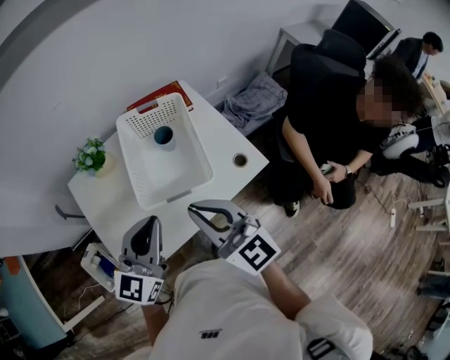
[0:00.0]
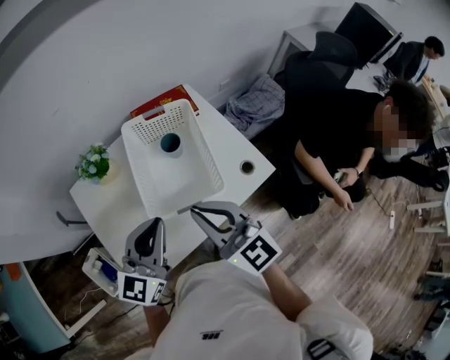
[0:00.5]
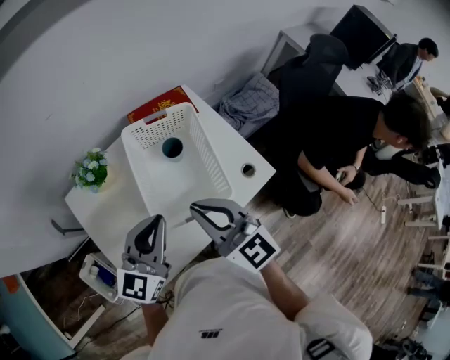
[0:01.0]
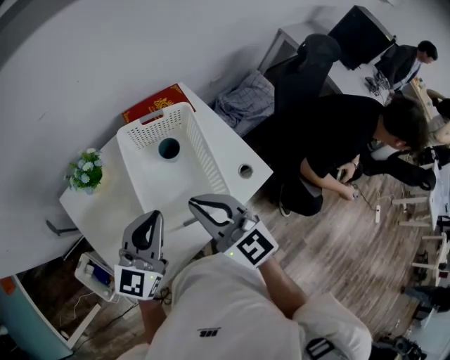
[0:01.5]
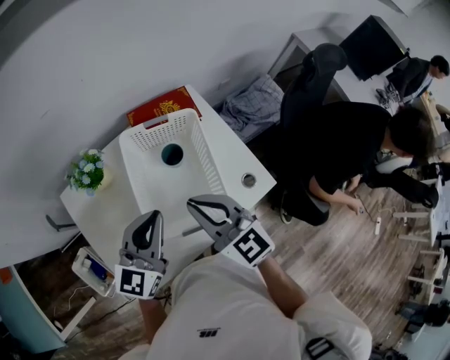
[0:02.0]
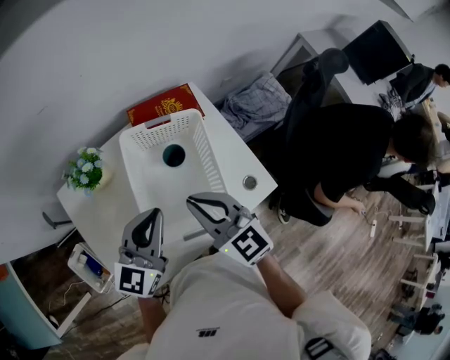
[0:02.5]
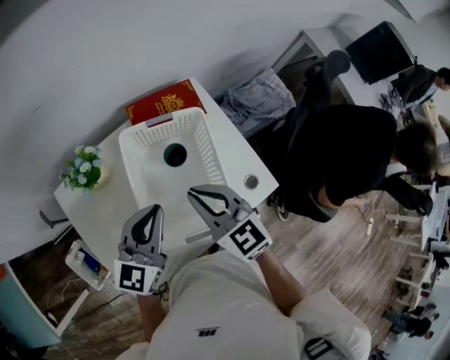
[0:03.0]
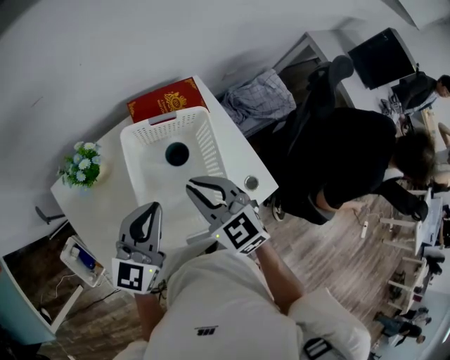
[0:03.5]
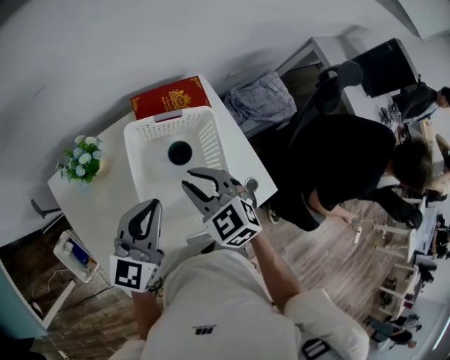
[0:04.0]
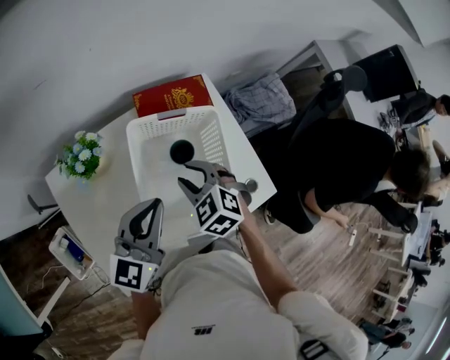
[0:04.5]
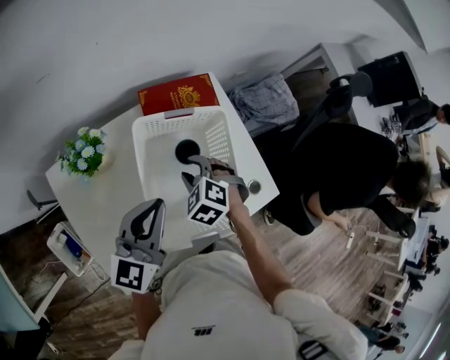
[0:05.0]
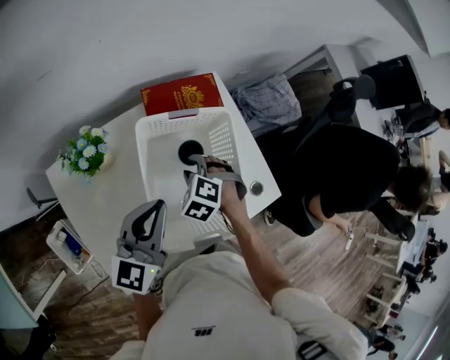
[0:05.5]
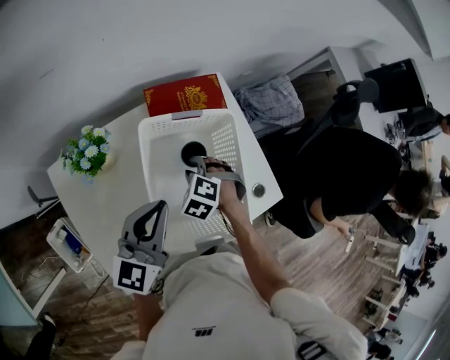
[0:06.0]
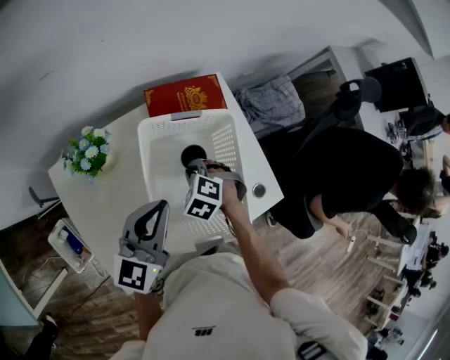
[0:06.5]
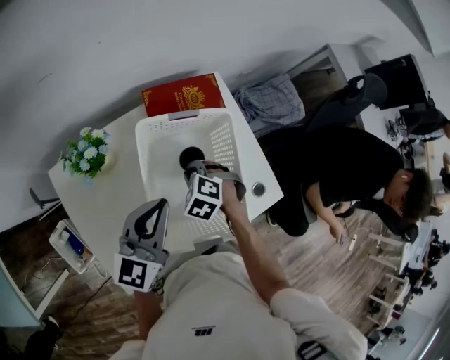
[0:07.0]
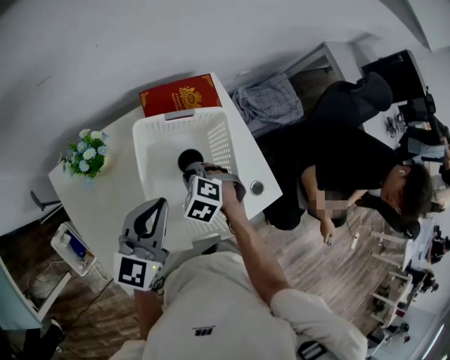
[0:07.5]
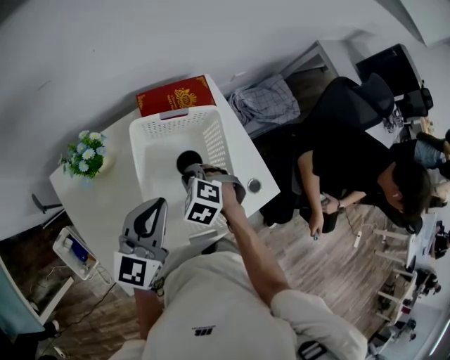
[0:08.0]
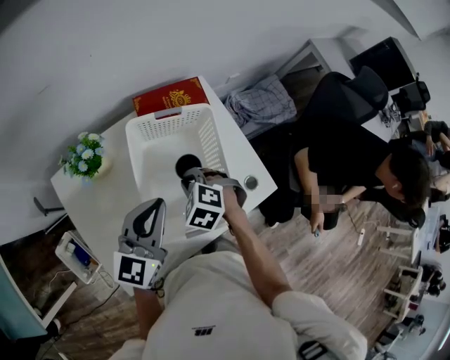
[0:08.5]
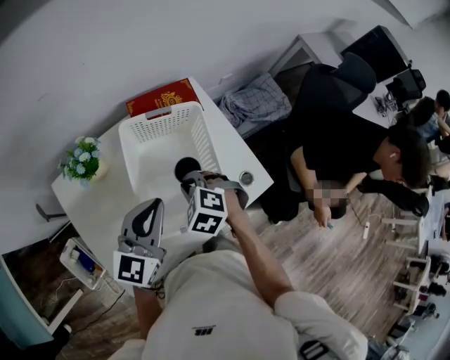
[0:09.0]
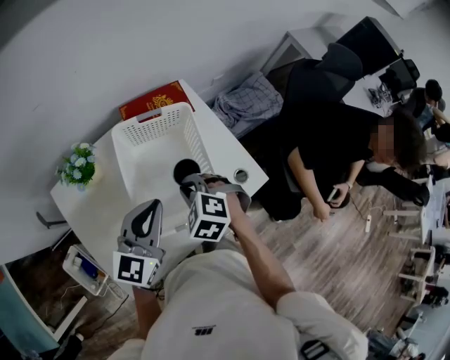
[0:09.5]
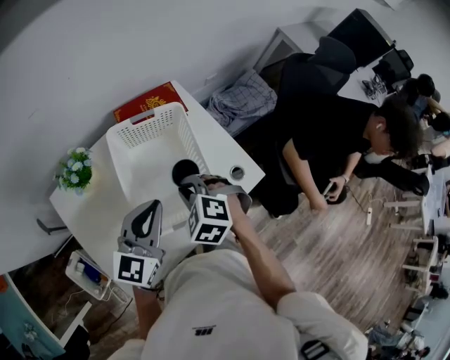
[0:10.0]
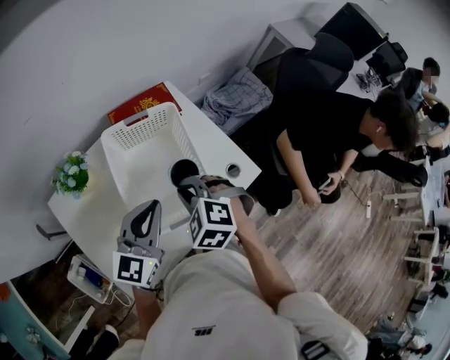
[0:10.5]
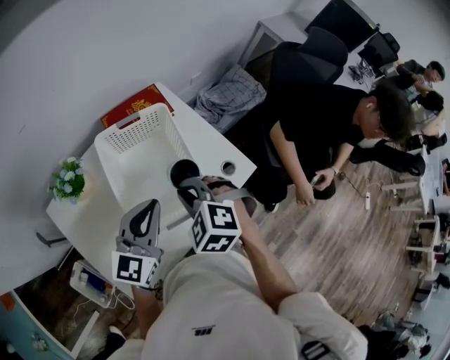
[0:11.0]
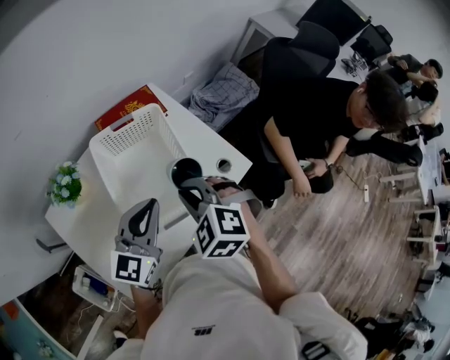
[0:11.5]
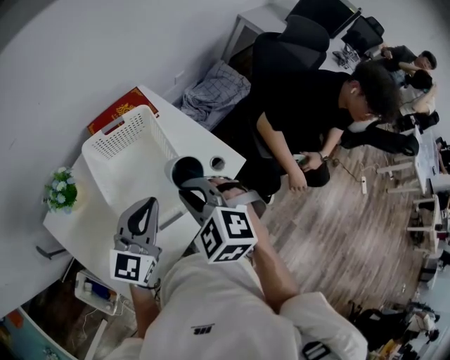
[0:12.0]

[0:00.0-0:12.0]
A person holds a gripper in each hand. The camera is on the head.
0:00.0 to 0:02.0: Both grippers travel together forward, some 15 cm.
0:02.0 to 0:04.0: The left gripper moves forward, about 5 cm; the right gripper is displaced forward and downward by roughly 10 cm, and turns by some 20 degrees.
0:04.0 to 0:06.0: The right gripper is displaced downward by approximately 15 cm, and tilts its fingers approximately 30 degrees downward.
0:06.0 to 0:08.0: The right gripper shifts by roughly 5 cm, and closes.
0:08.0 to 0:10.0: The right gripper moves upward and backward, some 10 cm. Meanwhile the left gripper heads backward, covering roughly 5 cm.
0:10.0 to 0:12.0: The right gripper goes some 10 cm upward.

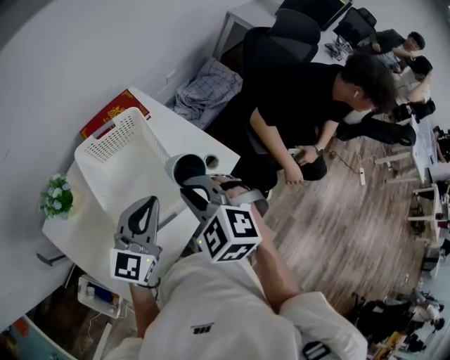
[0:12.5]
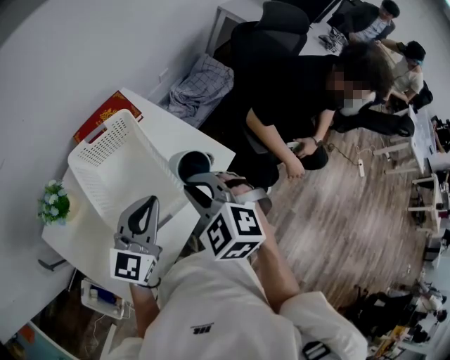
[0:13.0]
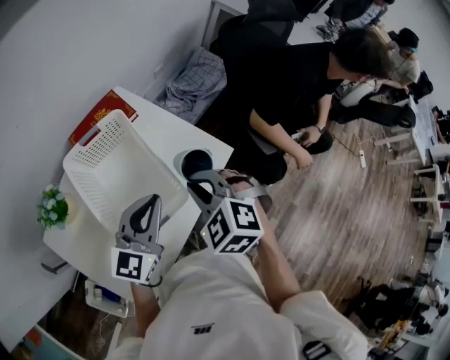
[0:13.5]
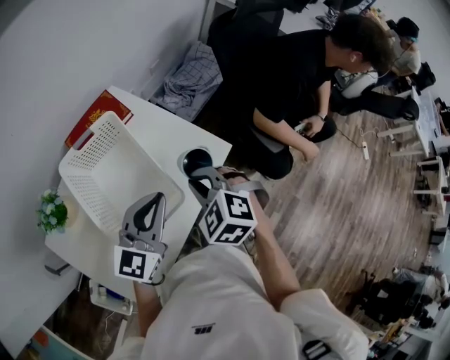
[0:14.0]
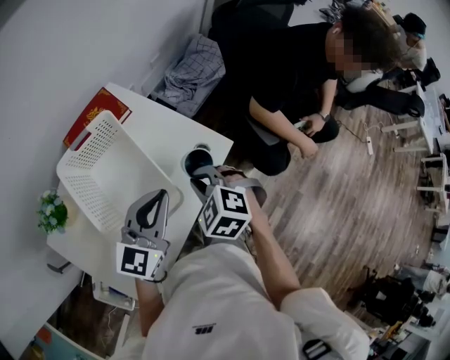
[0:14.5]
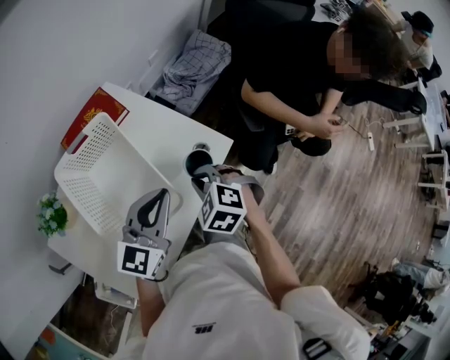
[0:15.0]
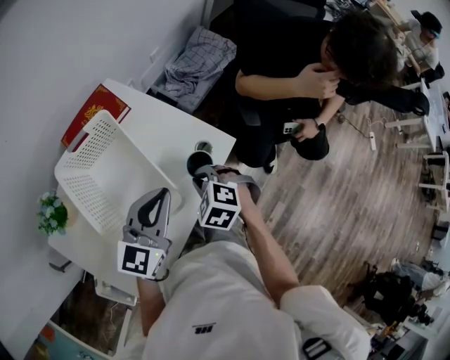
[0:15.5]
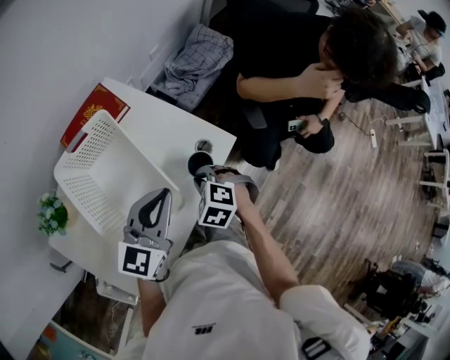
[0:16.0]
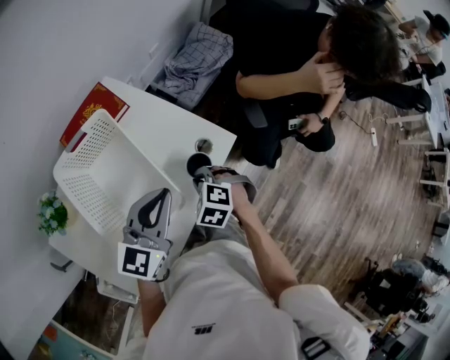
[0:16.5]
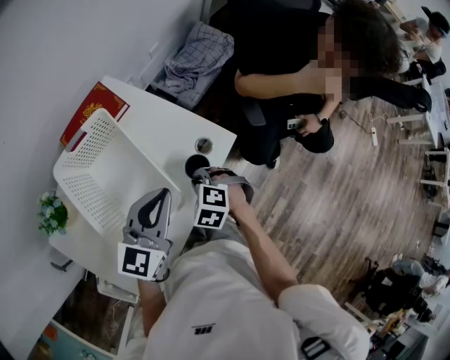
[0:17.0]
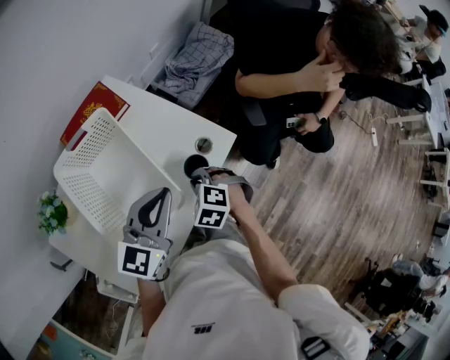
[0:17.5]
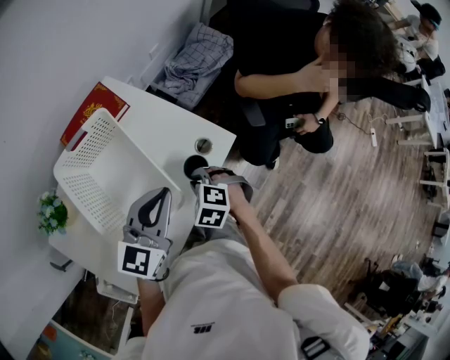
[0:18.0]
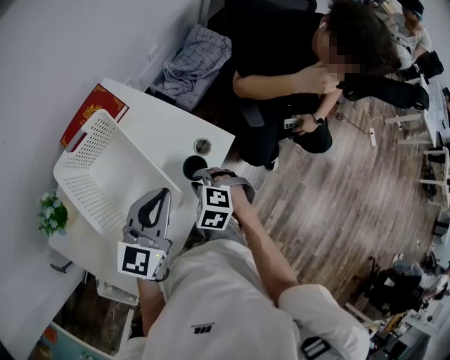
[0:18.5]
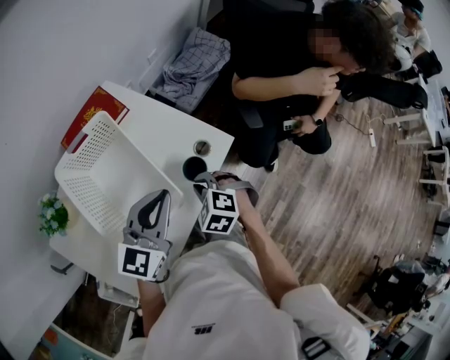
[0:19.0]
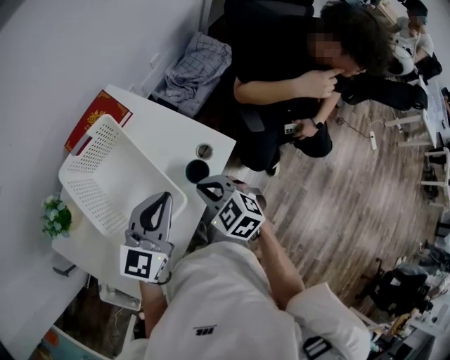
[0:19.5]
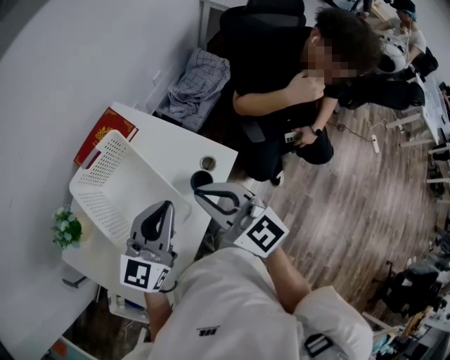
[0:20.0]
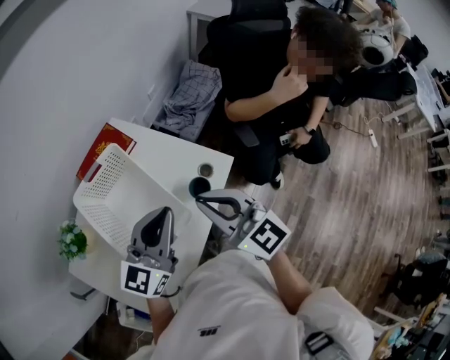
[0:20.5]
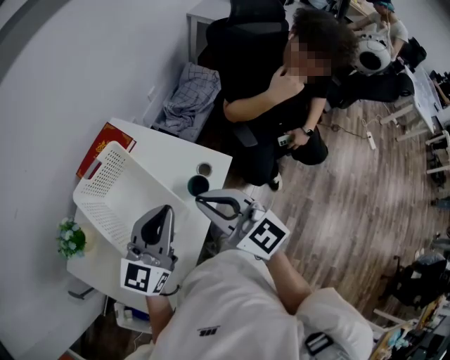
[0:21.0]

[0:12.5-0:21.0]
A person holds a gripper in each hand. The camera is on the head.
0:12.5 to 0:14.5: The left gripper moves to the right, approximately 10 cm; the right gripper shifts approximately 15 cm downward and to the right.
0:14.5 to 0:16.5: The right gripper goes approximately 10 cm downward.
0:16.5 to 0:19.0: There are only small adjustments of the grippers.
0:19.0 to 0:21.0: The right gripper goes roughly 25 cm upward, and points its fingers some 60 degrees further upward, while the left gripper shifts about 10 cm upward.

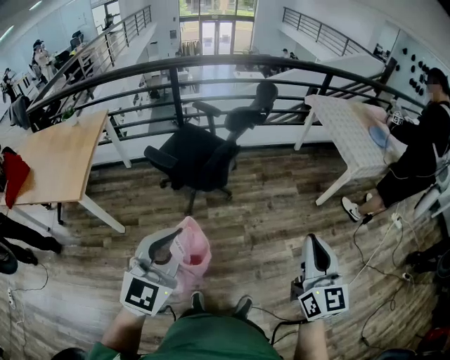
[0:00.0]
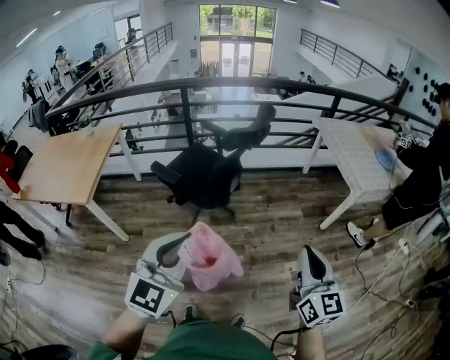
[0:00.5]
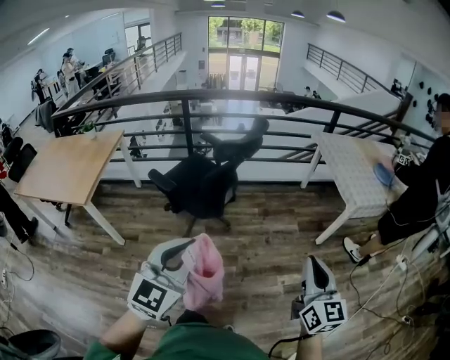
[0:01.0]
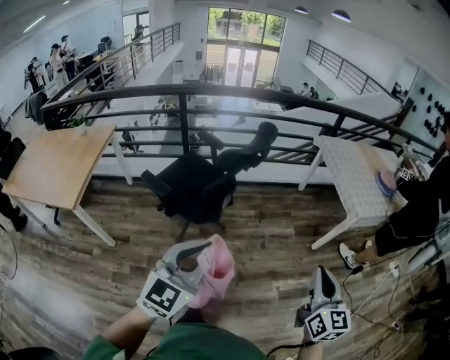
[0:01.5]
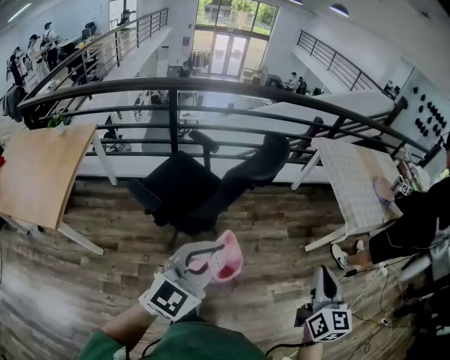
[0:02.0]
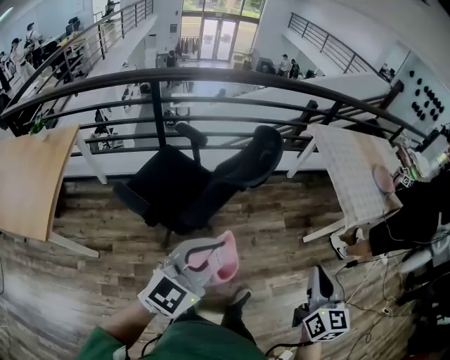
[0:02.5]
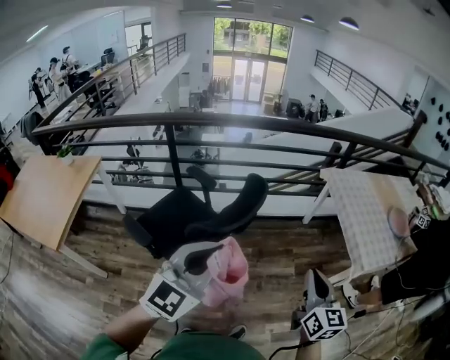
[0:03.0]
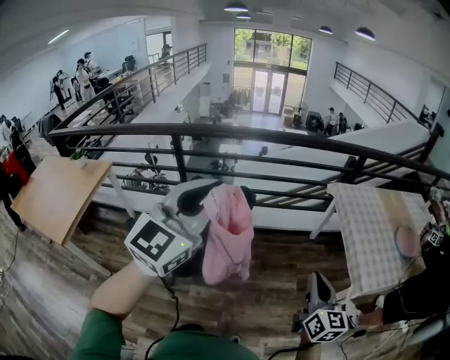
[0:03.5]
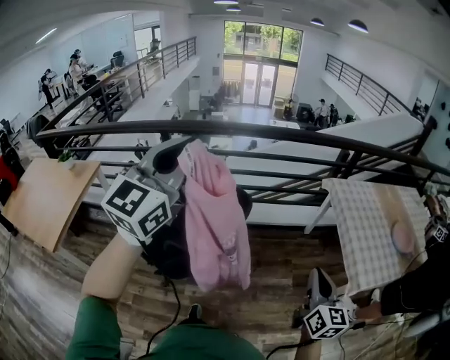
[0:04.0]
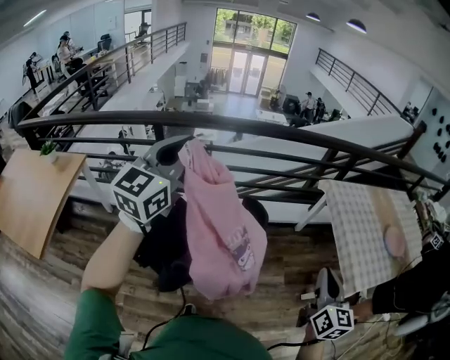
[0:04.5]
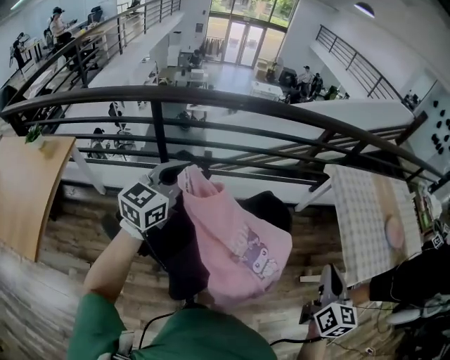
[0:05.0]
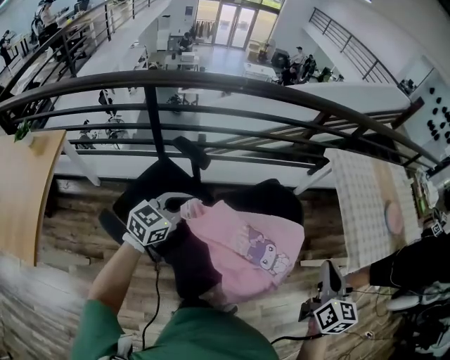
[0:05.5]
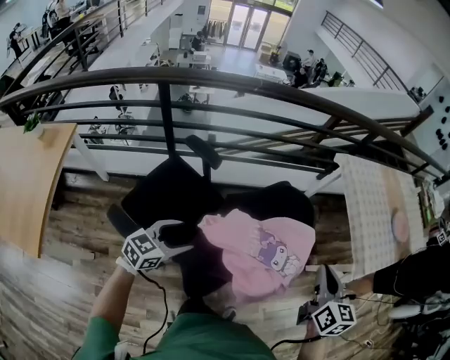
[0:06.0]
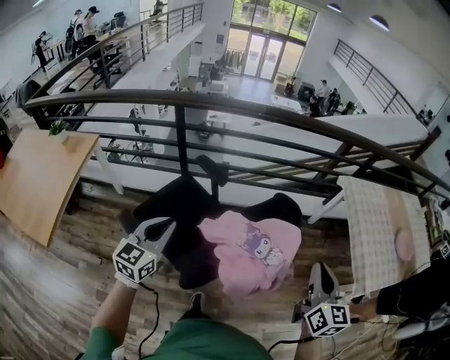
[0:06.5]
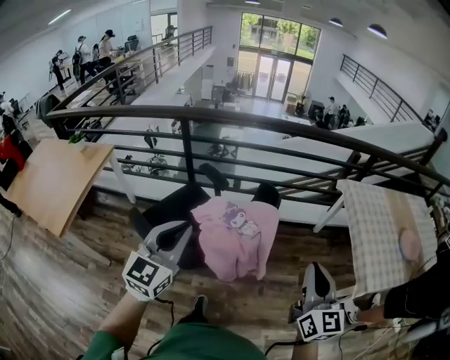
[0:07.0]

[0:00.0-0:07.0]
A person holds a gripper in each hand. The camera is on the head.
0:00.0 to 0:02.0: Both grippers move forward, roughly 25 cm.
0:02.0 to 0:03.5: The left gripper goes roughly 35 cm forward and upward, while the right gripper is displaced forward and to the right by approximately 30 cm.
0:03.5 to 0:05.0: The right gripper travels to the left and forward by roughly 15 cm. The left gripper heads to the left, forward and downward, covering roughly 40 cm, and swivels some 20 degrees.
0:05.0 to 0:07.0: The left gripper moves approximately 20 cm downward and comes back, and opens and closes again; the right gripper moves approximately 10 cm, and changes its angle by about 20 degrees.
